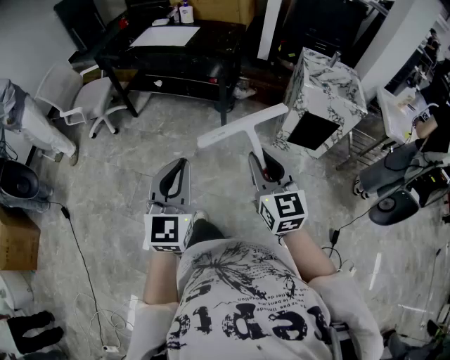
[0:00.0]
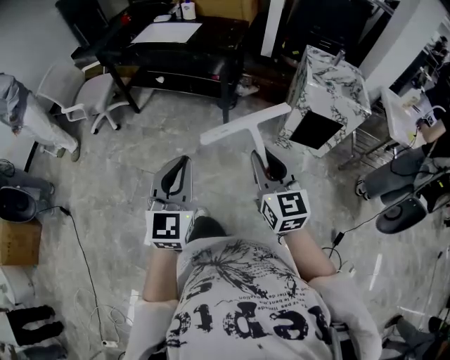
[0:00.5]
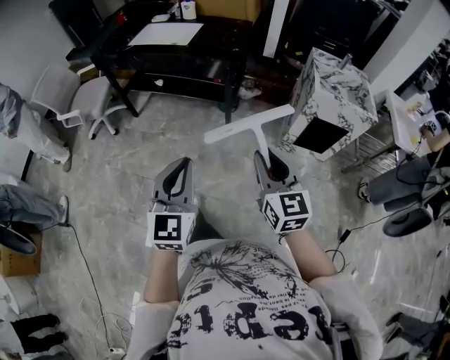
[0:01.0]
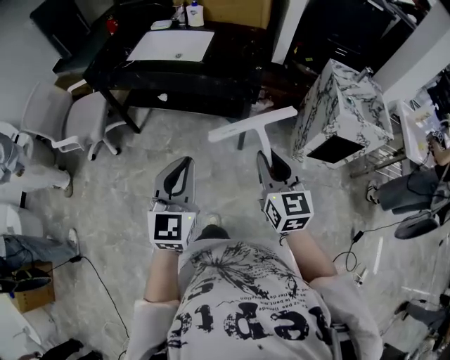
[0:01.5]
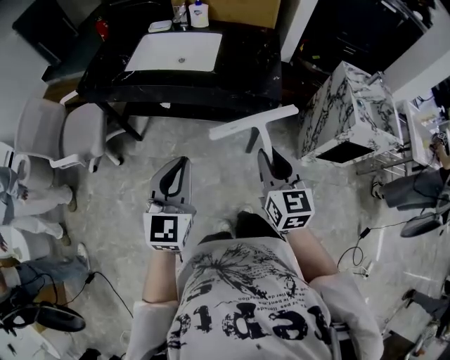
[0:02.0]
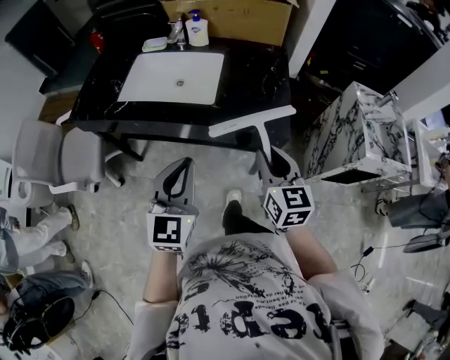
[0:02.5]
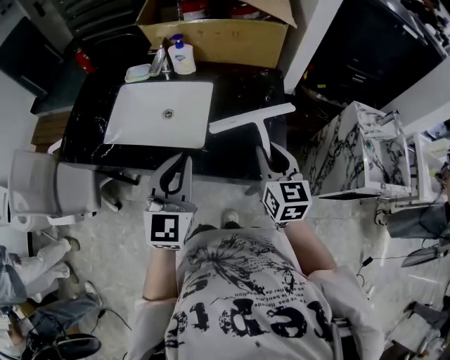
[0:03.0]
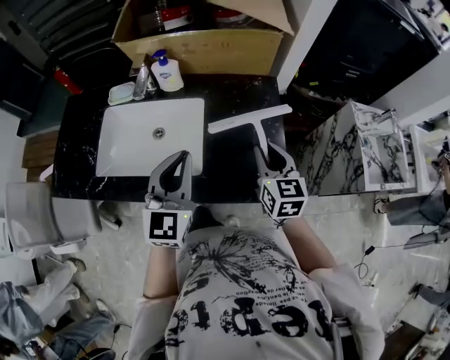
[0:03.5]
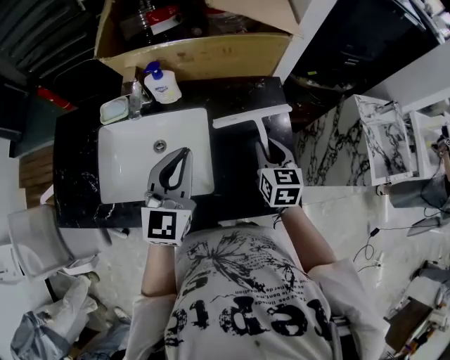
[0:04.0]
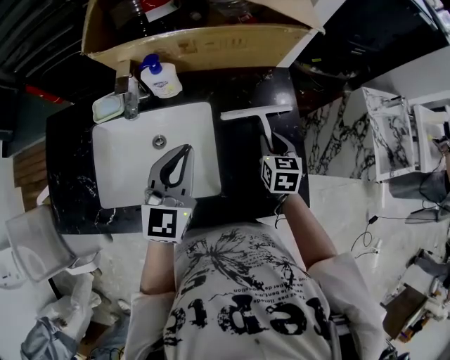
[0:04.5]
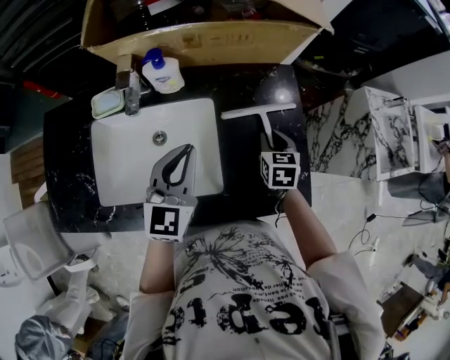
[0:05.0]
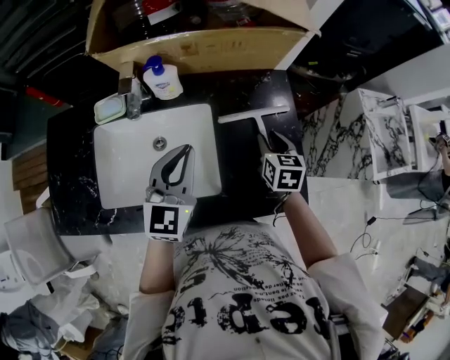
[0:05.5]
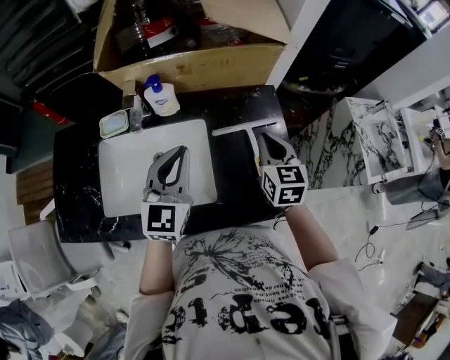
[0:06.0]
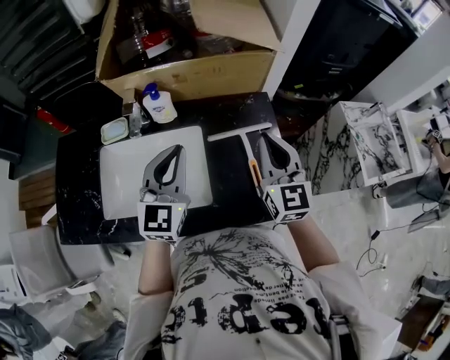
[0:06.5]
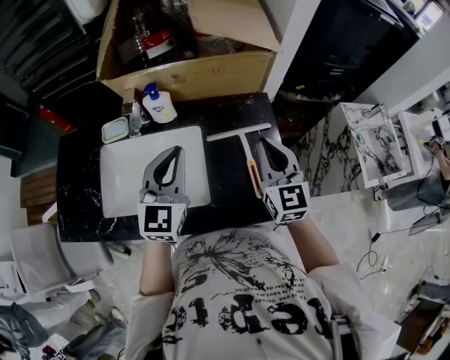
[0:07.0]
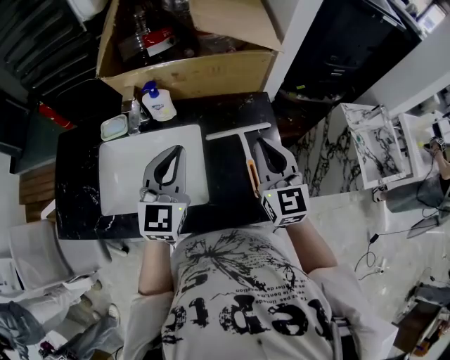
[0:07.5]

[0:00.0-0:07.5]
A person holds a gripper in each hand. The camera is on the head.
0:00.0 to 0:02.0: Both grippers are carried forward and to the left, some 50 cm.
0:02.0 to 0:04.0: The two grippers travel together, forward, some 50 cm. The right gripper rotates approximately 20 degrees.
0:04.0 to 0:05.5: The left gripper moves some 5 cm. The right gripper moves downward, approximately 5 cm.
0:05.5 to 0:07.5: The right gripper is displaced upward by some 20 cm, tilts its fingers some 30 degrees upward, and closes up, while the left gripper shifts some 5 cm upward.

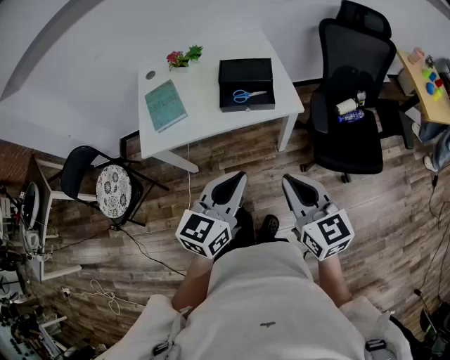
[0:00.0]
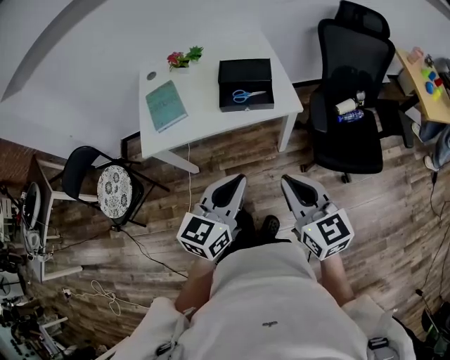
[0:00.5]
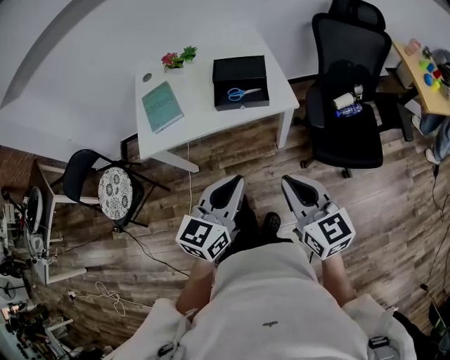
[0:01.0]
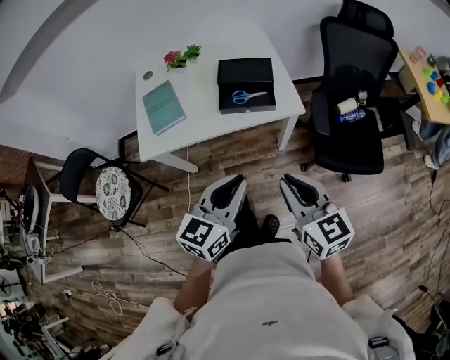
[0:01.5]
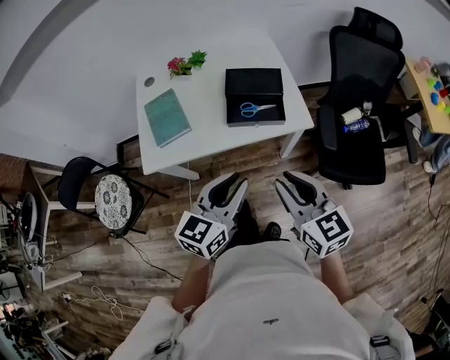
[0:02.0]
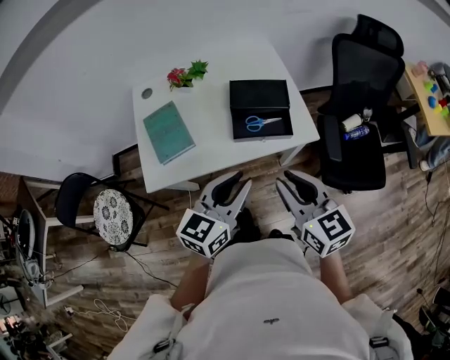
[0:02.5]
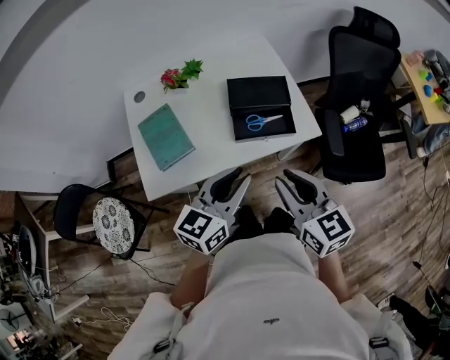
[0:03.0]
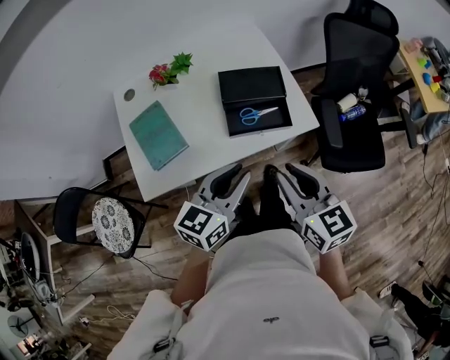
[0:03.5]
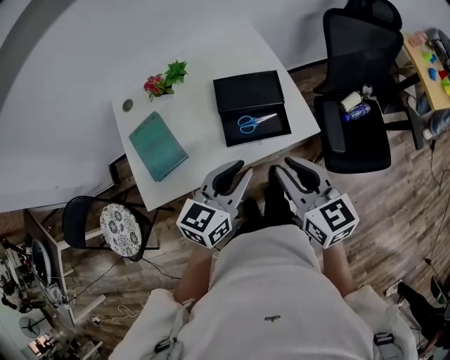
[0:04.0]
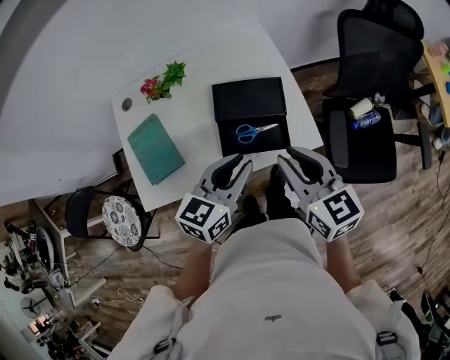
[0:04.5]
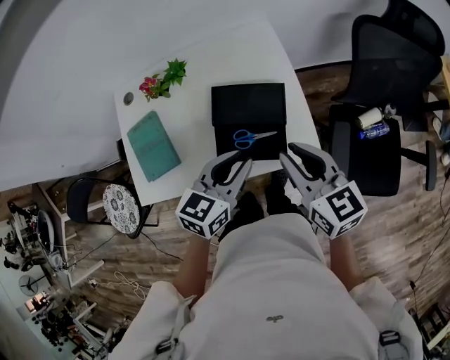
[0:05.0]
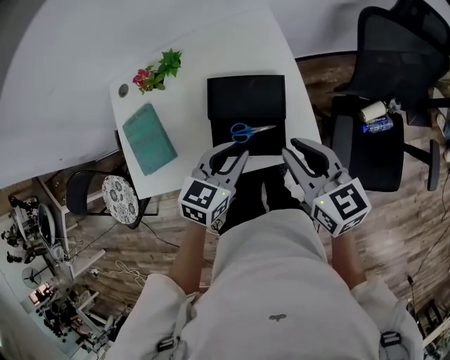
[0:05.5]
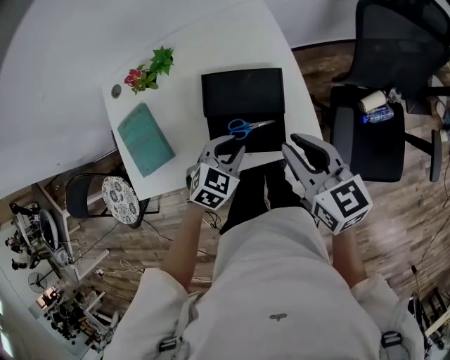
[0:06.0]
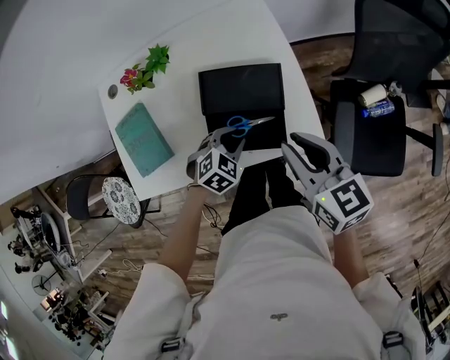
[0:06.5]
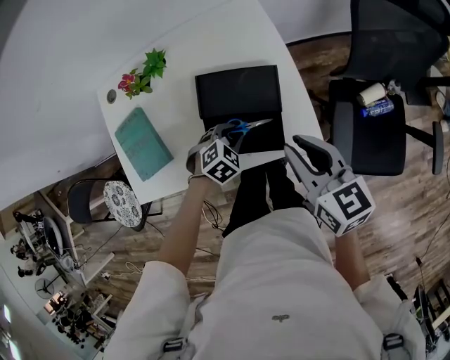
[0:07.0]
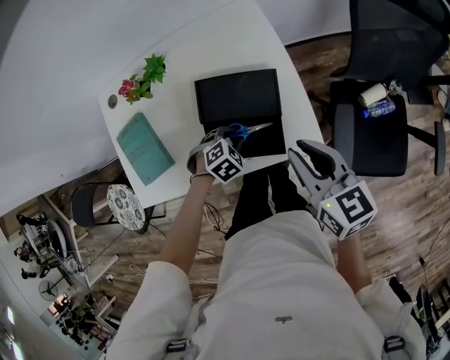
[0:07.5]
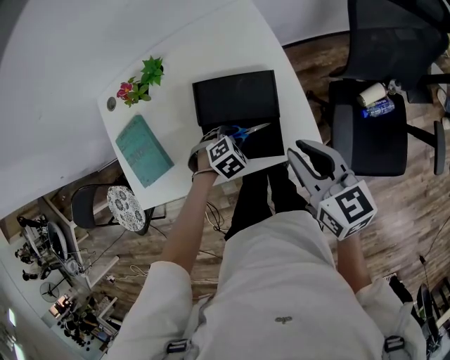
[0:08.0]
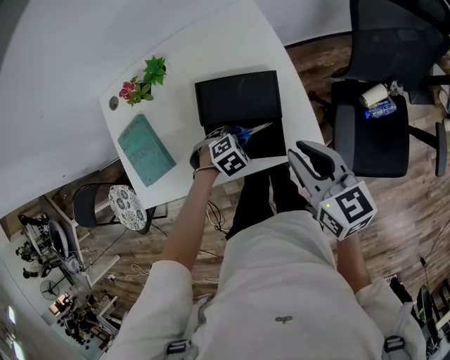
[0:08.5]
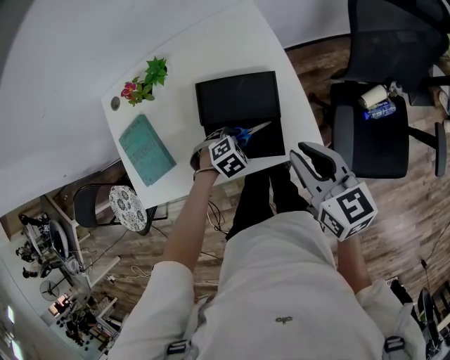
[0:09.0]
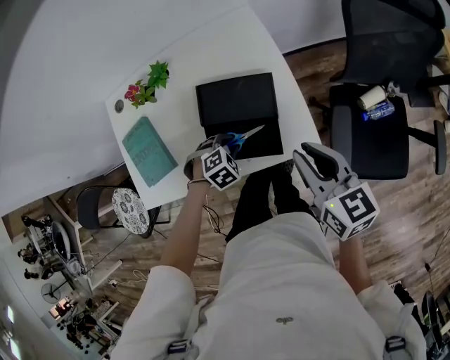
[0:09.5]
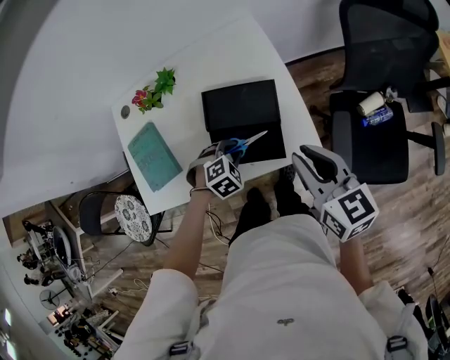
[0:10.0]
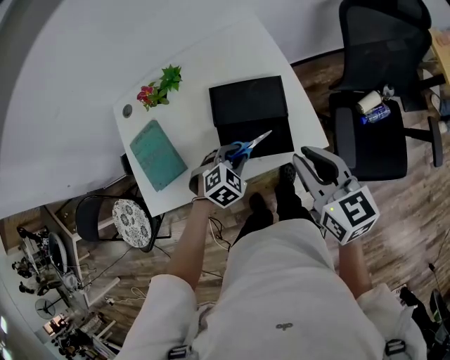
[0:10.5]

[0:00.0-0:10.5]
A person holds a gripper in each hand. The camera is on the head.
0:00.0 to 0:02.0: Both grippers move forward, approximately 10 cm. The right gripper opens up.
0:02.0 to 0:04.0: Both grippers move forward, approximately 15 cm.
0:04.0 to 0:06.5: The right gripper heads forward and to the right, covering approximately 15 cm. Meanwhile the left gripper goes approximately 25 cm downward and forward, and points its fingers approximately 40 degrees further downward.
0:06.5 to 0:08.5: The left gripper goes some 5 cm downward, and swivels roughly 20 degrees.
0:08.5 to 0:10.5: The left gripper is displaced upward by approximately 10 cm. The right gripper ends up about 5 cm from where it was.

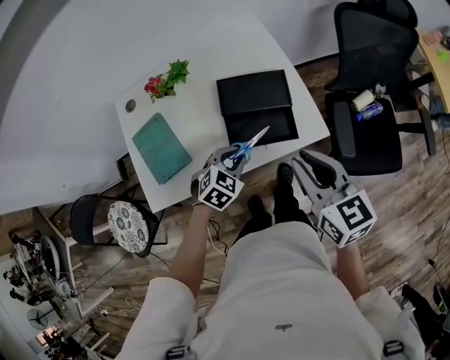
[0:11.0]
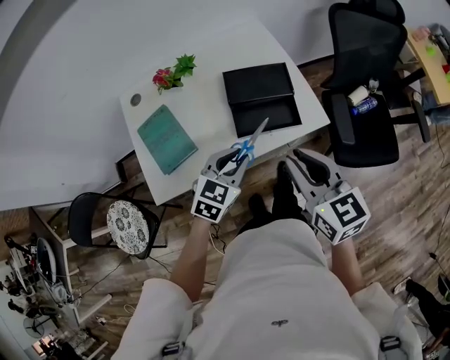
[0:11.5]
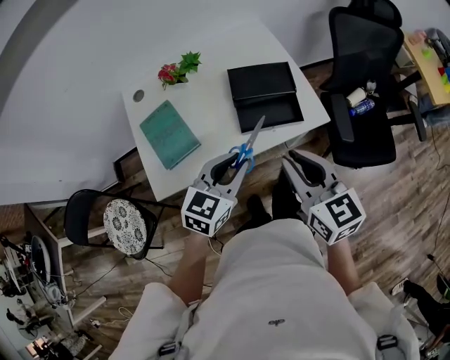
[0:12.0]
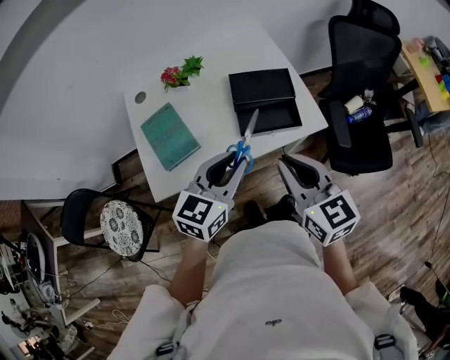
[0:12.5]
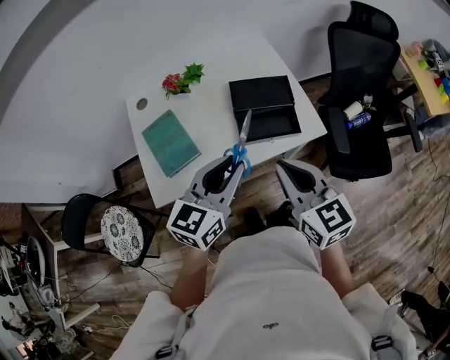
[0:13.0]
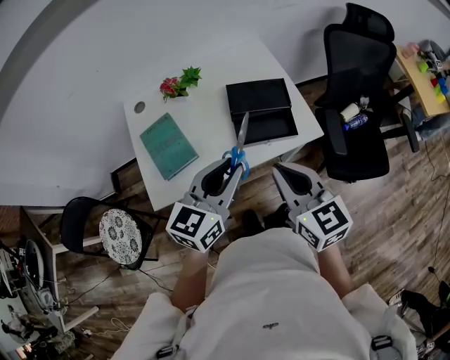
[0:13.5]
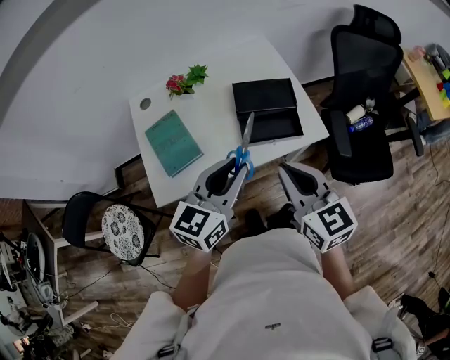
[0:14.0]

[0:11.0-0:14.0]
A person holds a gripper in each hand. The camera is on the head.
0:11.0 to 0:12.5: The left gripper travels upward and backward by roughly 20 cm, and angles its fingers upward, by approximately 30 degrees, while the right gripper travels backward and to the left by some 10 cm.
0:12.5 to 0:14.0: The grippers stay close to where they were, moving slightly.

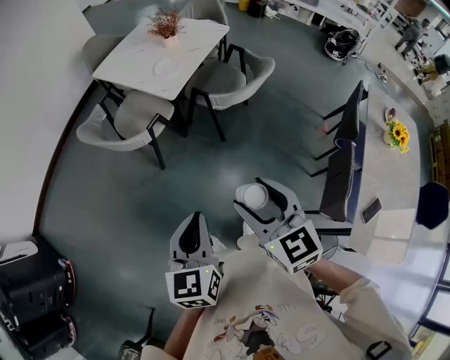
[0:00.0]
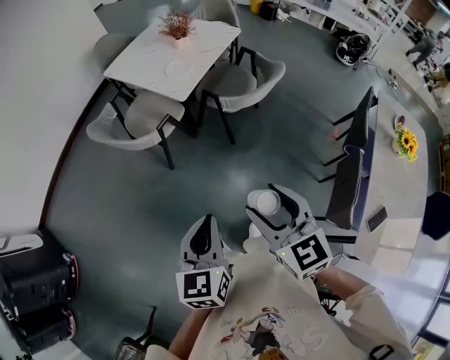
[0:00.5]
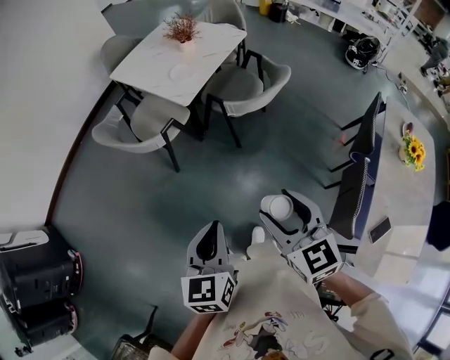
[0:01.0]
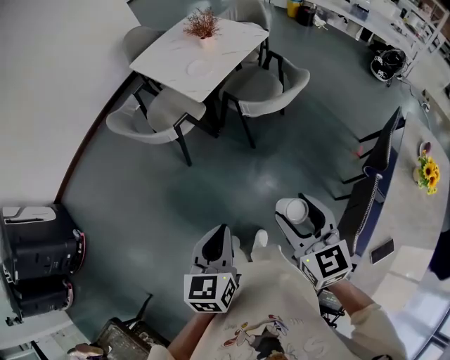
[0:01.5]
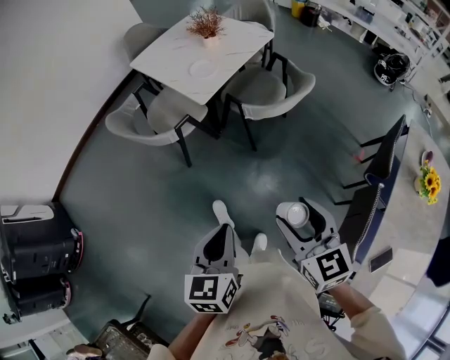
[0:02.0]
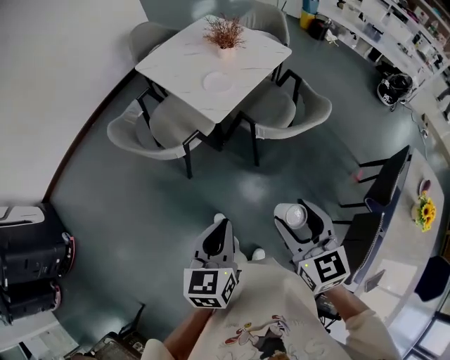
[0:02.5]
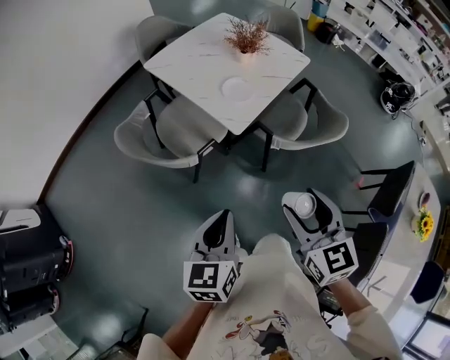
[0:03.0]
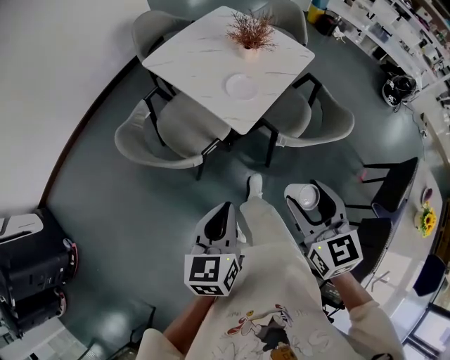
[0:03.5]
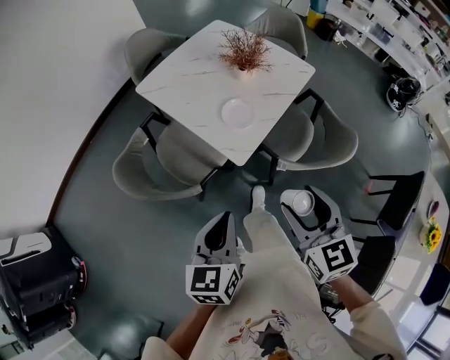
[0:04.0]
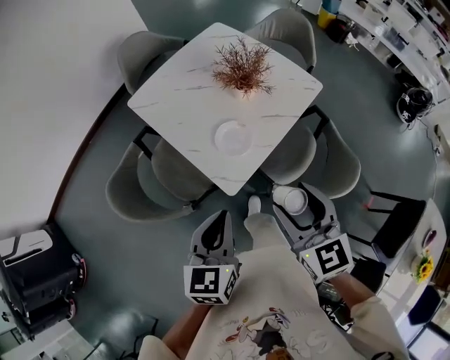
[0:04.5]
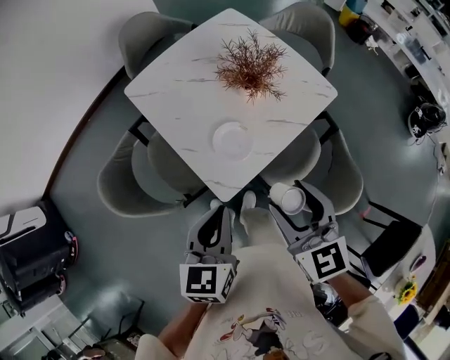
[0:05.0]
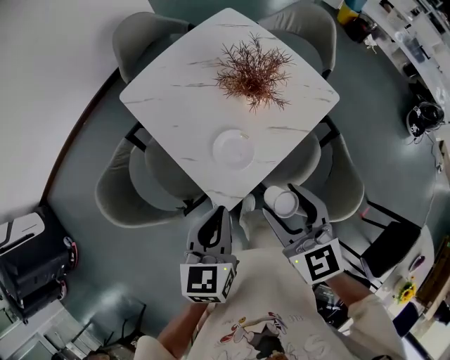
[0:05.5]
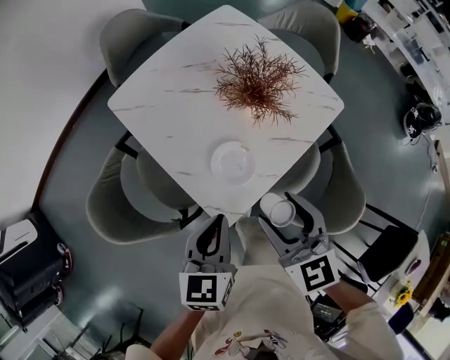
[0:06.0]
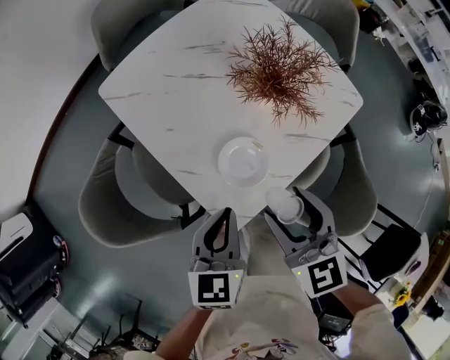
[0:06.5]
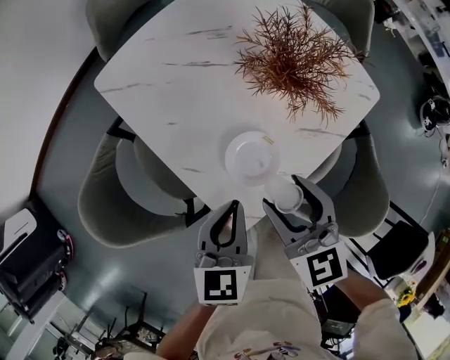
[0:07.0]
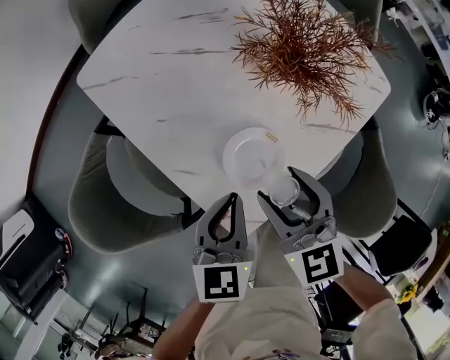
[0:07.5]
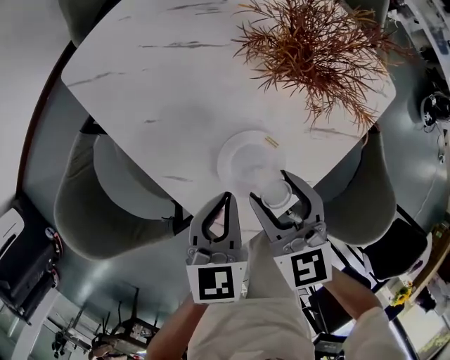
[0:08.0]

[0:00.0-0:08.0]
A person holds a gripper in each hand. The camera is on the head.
0:00.0 to 0:02.0: The two grippers go about 10 cm to the right.
0:02.0 to 0:04.0: The pair of grippers is taken forward, approximately 40 cm.
0:04.0 to 0:06.0: The two grippers go about 30 cm forward.
0:06.0 to 0:08.0: The right gripper goes approximately 20 cm downward. Meanwhile the left gripper goes some 20 cm downward and forward.
